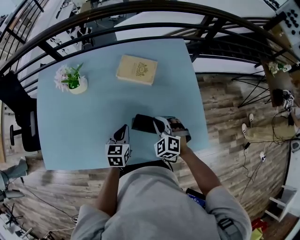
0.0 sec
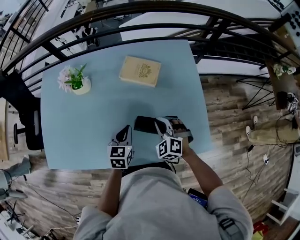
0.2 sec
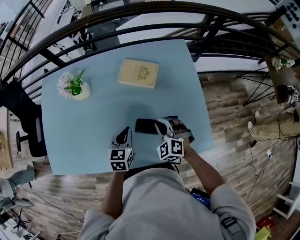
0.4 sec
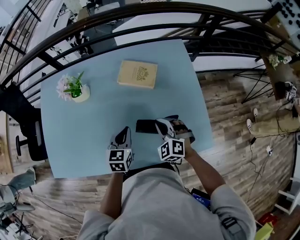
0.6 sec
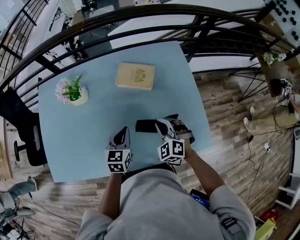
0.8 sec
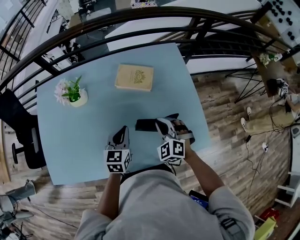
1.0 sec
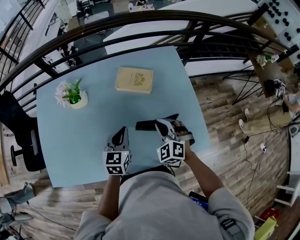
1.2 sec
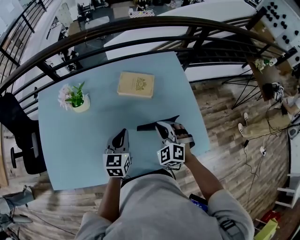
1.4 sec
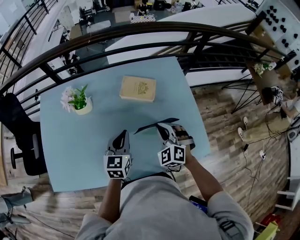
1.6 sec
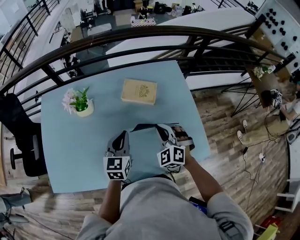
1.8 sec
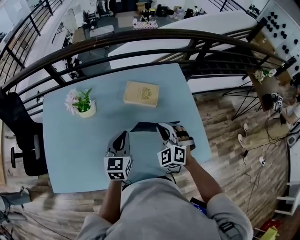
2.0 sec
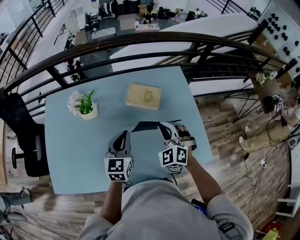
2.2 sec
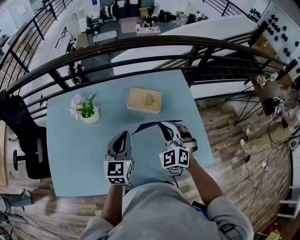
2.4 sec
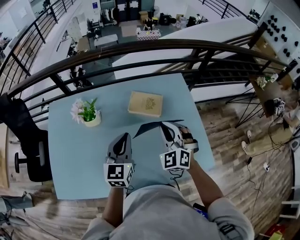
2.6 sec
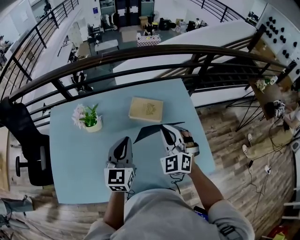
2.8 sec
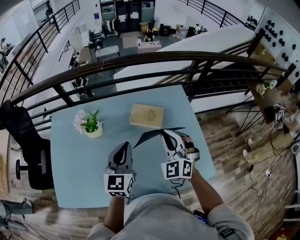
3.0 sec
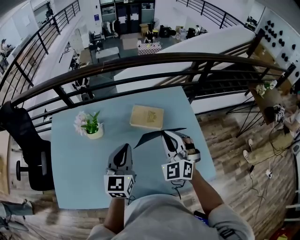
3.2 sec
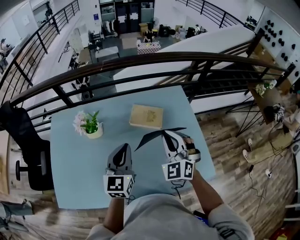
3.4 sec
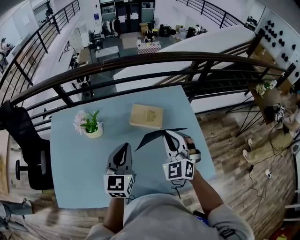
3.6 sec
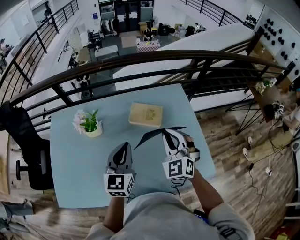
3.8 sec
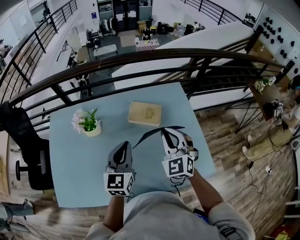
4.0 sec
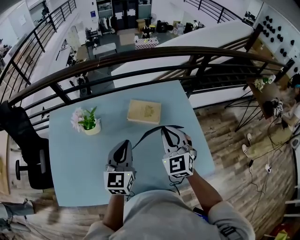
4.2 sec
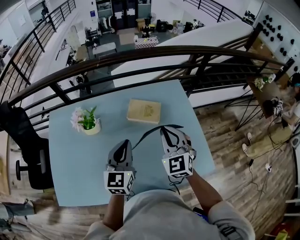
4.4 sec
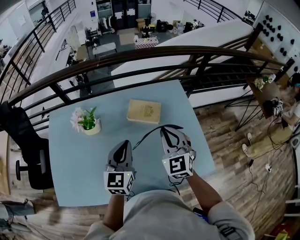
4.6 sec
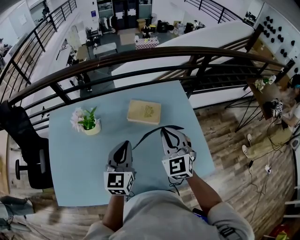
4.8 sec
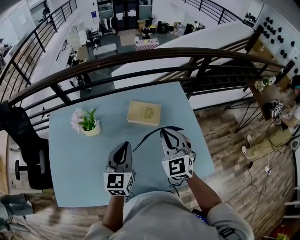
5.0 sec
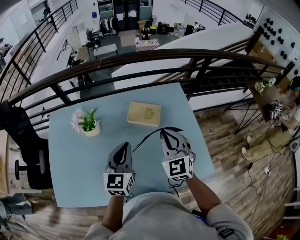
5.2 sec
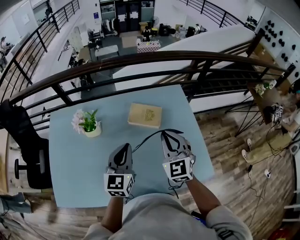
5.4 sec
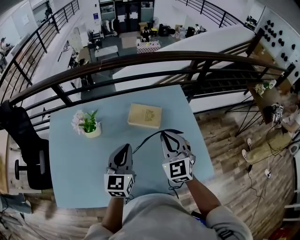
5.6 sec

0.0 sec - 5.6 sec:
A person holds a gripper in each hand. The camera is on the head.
0.0 sec - 1.4 sec: The grippers both shift upward by roughly 10 cm.
1.4 sec - 2.8 sec: The left gripper travels upward by approximately 10 cm; the right gripper travels upward and forward by roughly 15 cm.
2.8 sec - 4.2 sec: The grippers move only a little.
4.2 sec - 5.6 sec: Both grippers stay put.

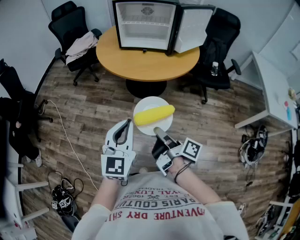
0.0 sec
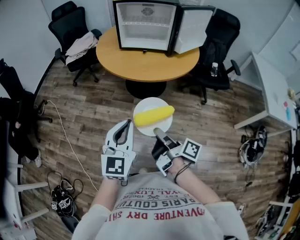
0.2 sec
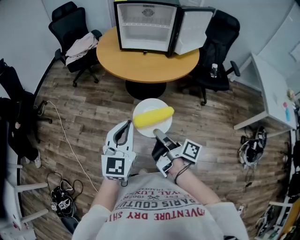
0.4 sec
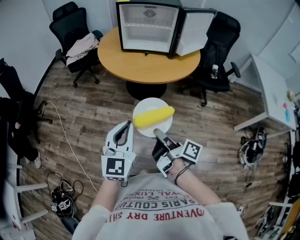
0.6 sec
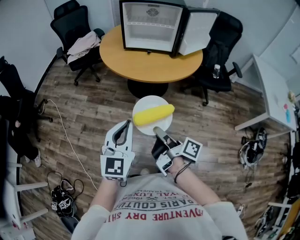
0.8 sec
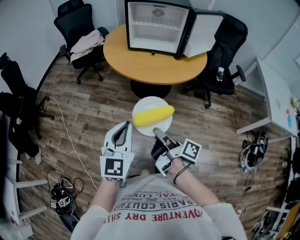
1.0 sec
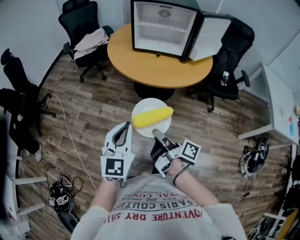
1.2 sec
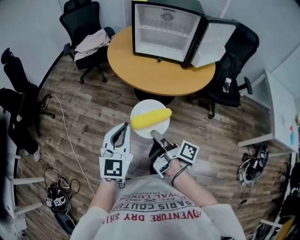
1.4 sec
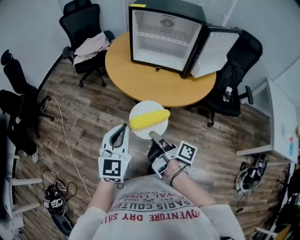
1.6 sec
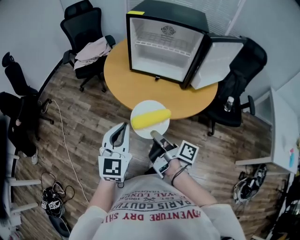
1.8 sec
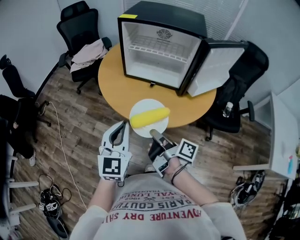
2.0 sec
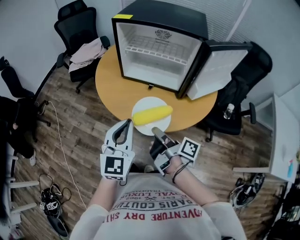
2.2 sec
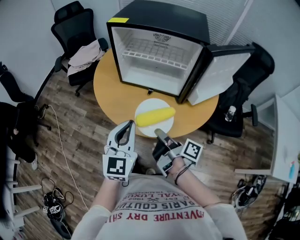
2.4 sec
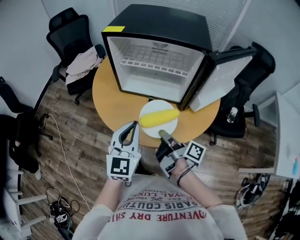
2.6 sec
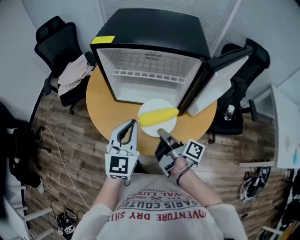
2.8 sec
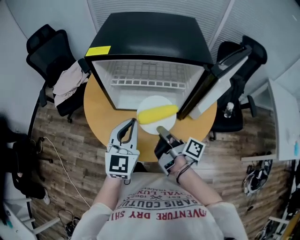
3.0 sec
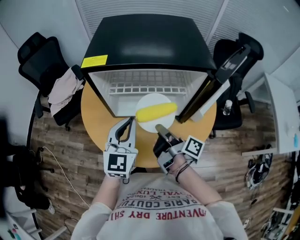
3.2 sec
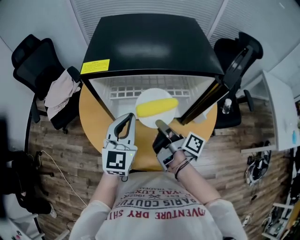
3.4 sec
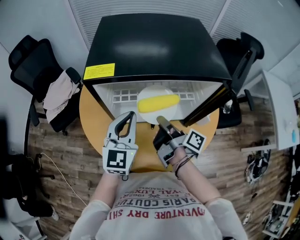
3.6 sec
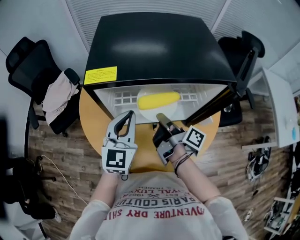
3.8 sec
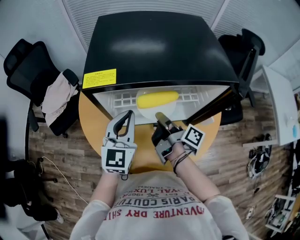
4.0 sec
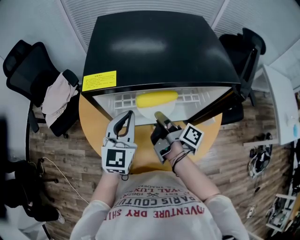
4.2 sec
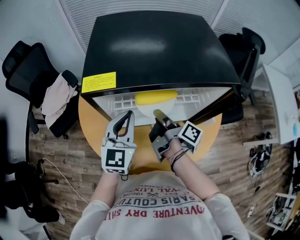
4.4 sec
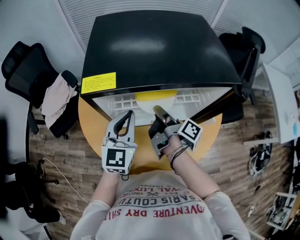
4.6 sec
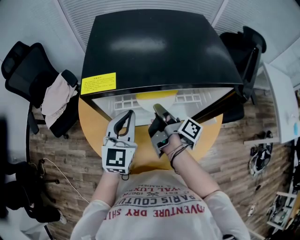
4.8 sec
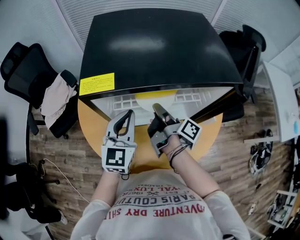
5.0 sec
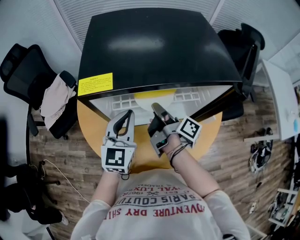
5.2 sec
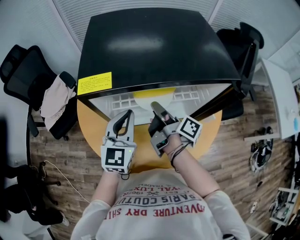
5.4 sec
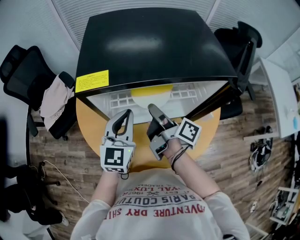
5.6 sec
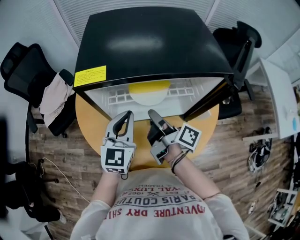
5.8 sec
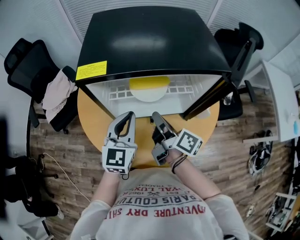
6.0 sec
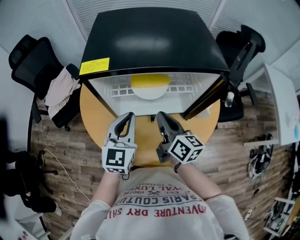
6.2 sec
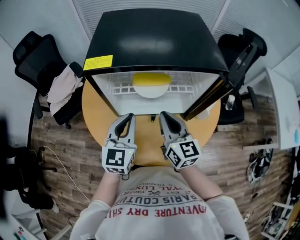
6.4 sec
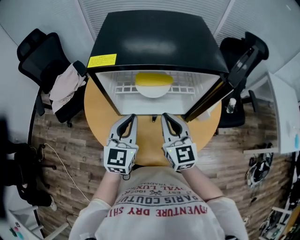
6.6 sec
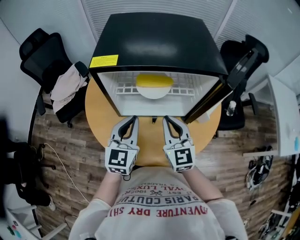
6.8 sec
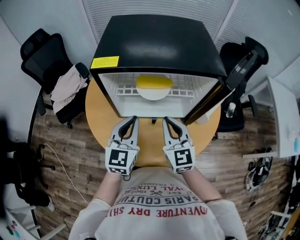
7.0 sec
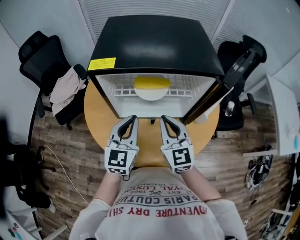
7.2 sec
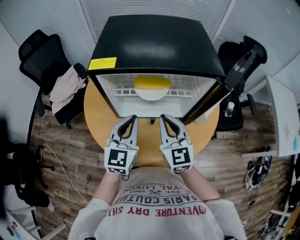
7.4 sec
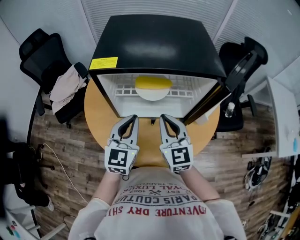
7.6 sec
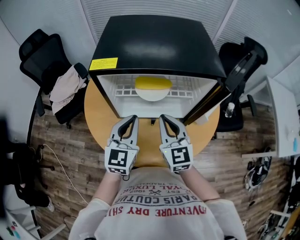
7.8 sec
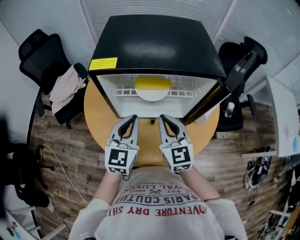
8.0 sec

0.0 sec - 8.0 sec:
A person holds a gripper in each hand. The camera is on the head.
0.0 sec - 1.6 sec: The left gripper changes place by approximately 15 cm.
1.6 sec - 3.2 sec: The left gripper ends up about 40 cm from where it was.
3.2 sec - 4.8 sec: The left gripper shifts by about 10 cm.
4.8 sec - 6.4 sec: The left gripper ends up about 10 cm from where it was.

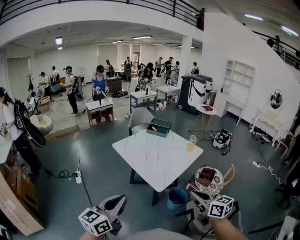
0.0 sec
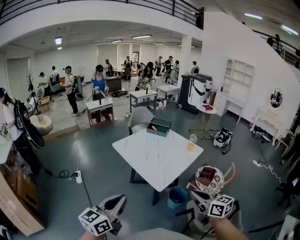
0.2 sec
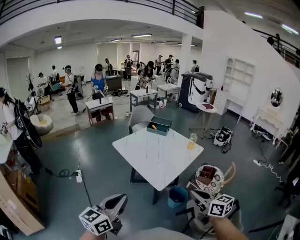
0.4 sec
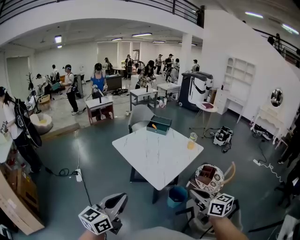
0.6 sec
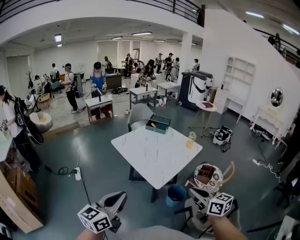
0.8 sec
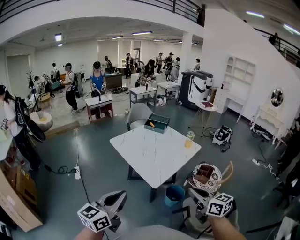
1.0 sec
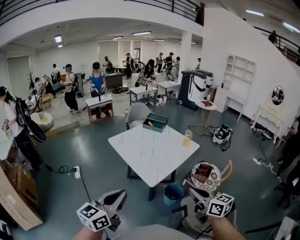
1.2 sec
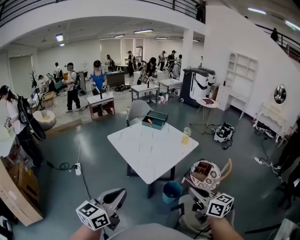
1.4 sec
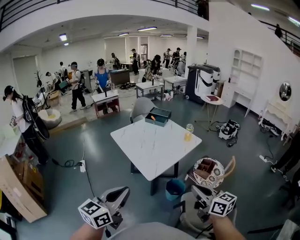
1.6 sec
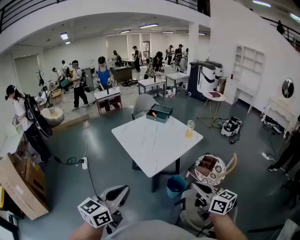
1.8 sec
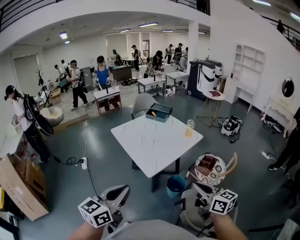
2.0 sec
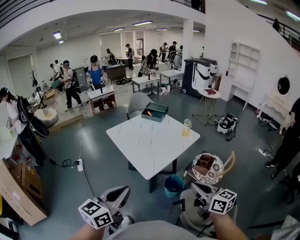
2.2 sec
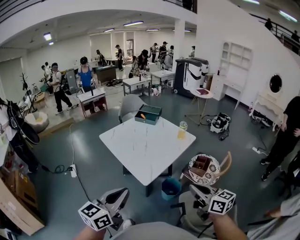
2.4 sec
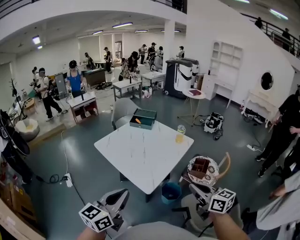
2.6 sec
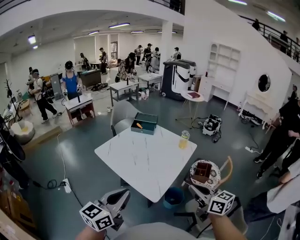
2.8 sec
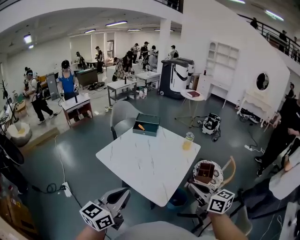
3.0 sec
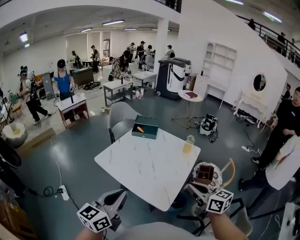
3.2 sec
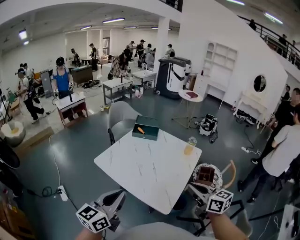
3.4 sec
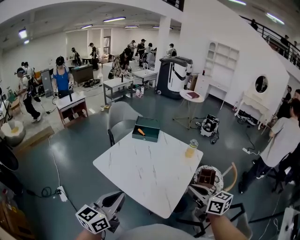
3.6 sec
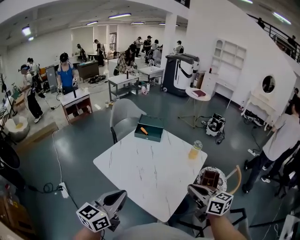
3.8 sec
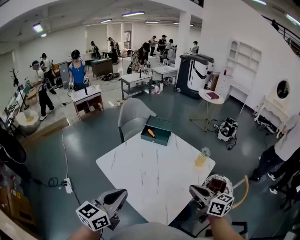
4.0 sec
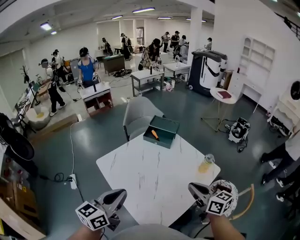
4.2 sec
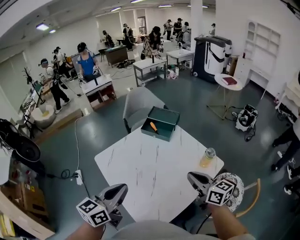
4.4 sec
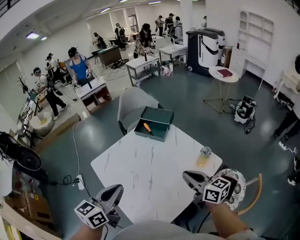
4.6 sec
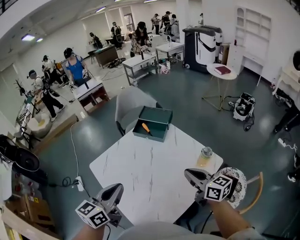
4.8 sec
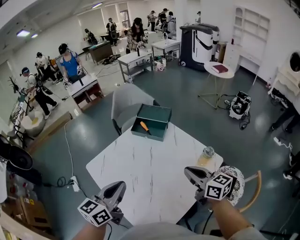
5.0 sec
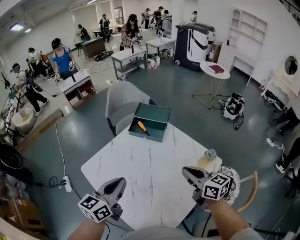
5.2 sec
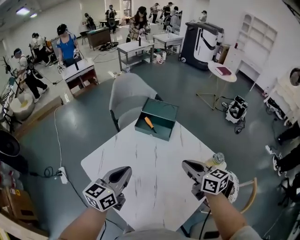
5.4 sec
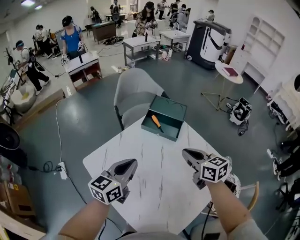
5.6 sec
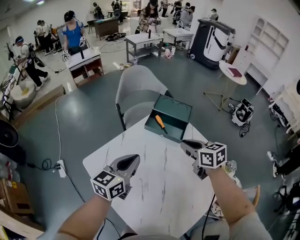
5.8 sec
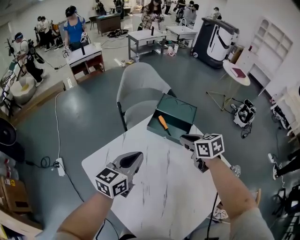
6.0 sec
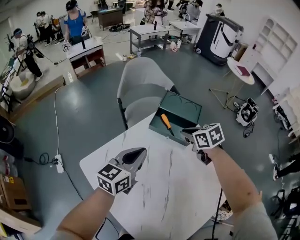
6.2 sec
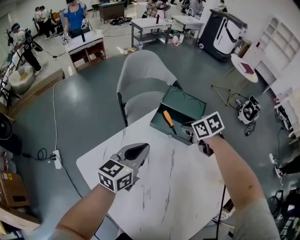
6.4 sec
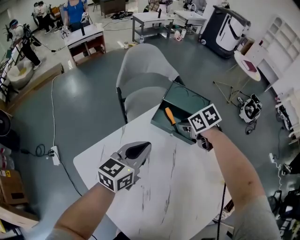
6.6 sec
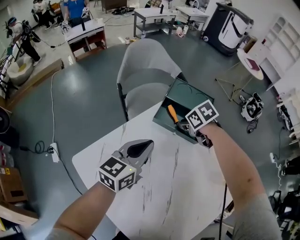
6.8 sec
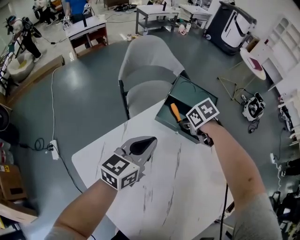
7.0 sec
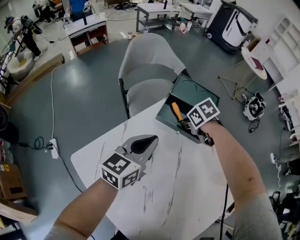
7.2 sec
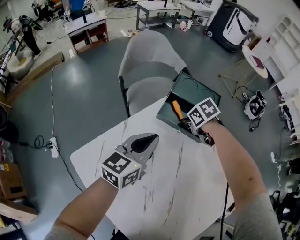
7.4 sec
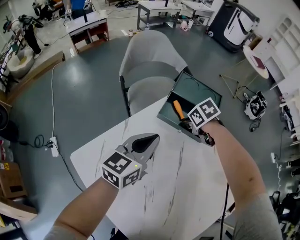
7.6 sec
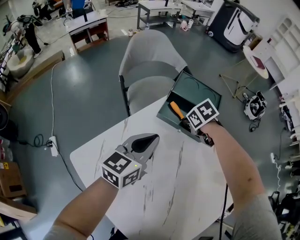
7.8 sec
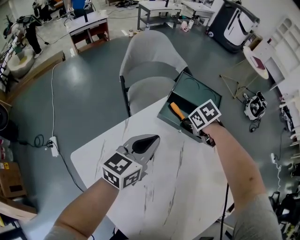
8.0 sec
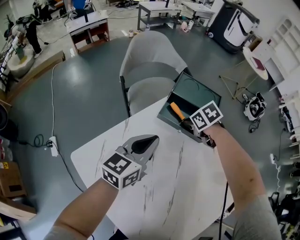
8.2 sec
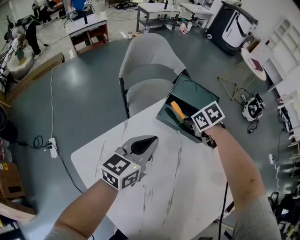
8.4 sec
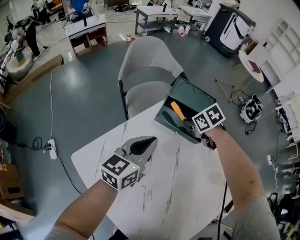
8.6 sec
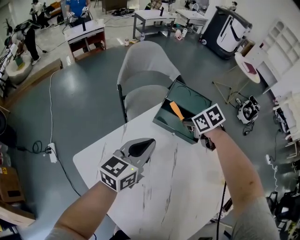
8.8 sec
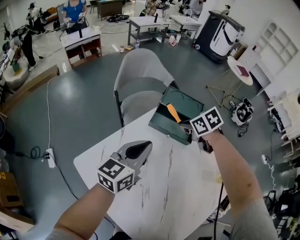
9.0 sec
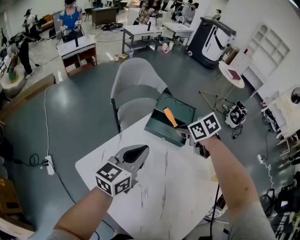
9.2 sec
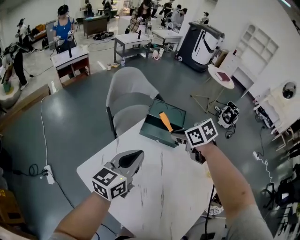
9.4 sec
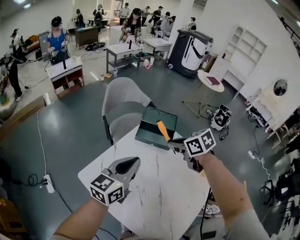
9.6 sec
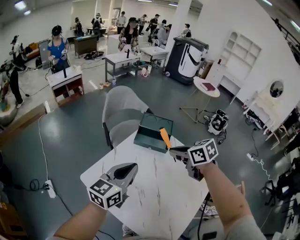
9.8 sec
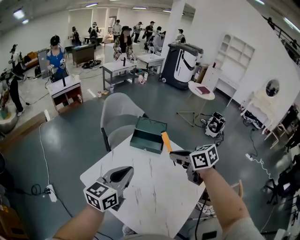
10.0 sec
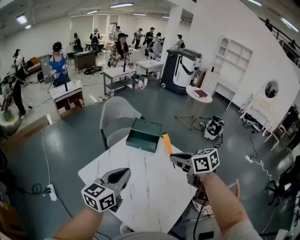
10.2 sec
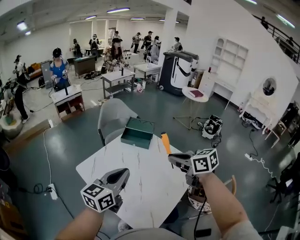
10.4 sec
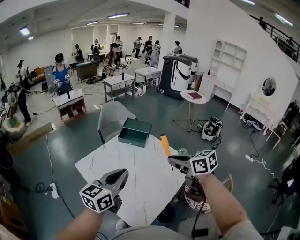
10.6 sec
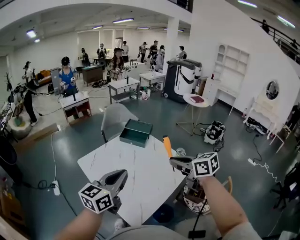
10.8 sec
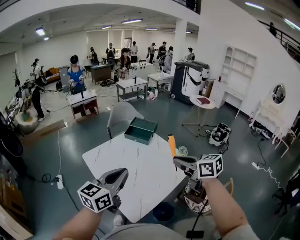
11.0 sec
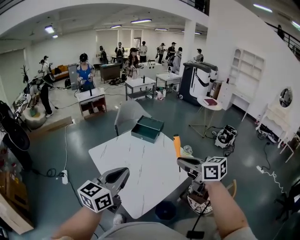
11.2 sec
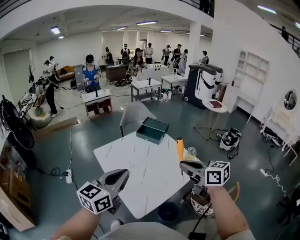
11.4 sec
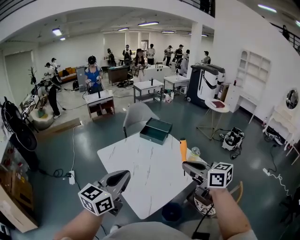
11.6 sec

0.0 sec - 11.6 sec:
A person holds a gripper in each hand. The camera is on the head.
0.0 sec - 1.4 sec: Both grippers travel together to the right, some 10 cm.
1.4 sec - 2.8 sec: Both grippers travel together forward, roughly 15 cm.
2.8 sec - 4.4 sec: The grippers both shift forward by approximately 30 cm.
4.4 sec - 5.8 sec: The left gripper heads forward and downward, covering about 30 cm, while the right gripper travels forward by roughly 25 cm, and swivels roughly 20 degrees.
5.8 sec - 7.2 sec: The left gripper heads forward and downward, covering about 15 cm. Meanwhile the right gripper is displaced downward and forward by approximately 25 cm, and tilts its fingers roughly 40 degrees downward.
7.2 sec - 8.8 sec: The right gripper shifts approximately 5 cm upward.
8.8 sec - 10.2 sec: Both grippers travel together backward and upward, roughly 35 cm. The right gripper points its fingers approximately 30 degrees further upward.
10.2 sec - 11.6 sec: Both grippers move backward, about 25 cm. The right gripper swivels some 20 degrees.
